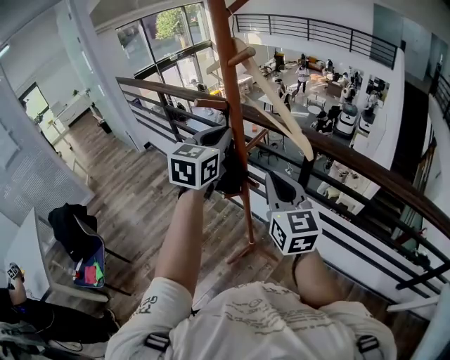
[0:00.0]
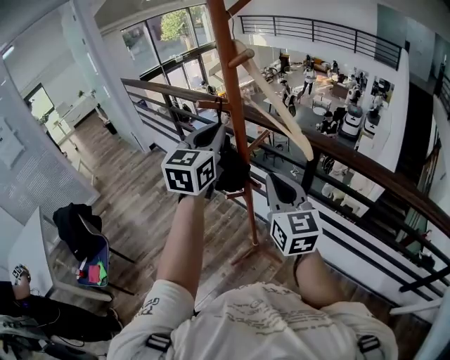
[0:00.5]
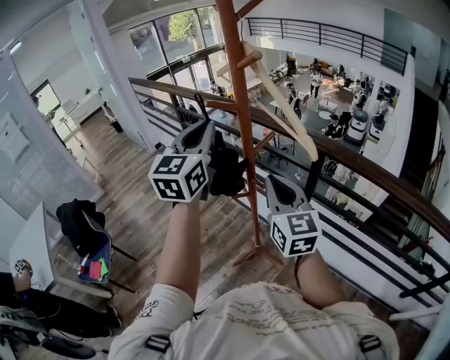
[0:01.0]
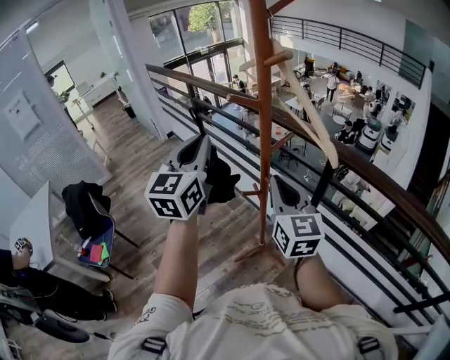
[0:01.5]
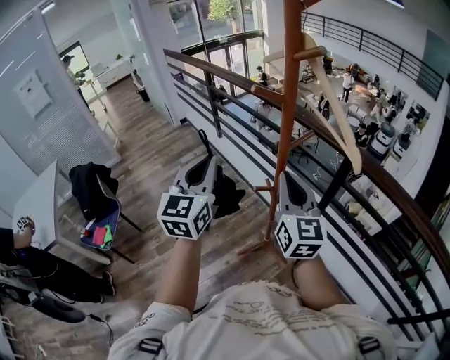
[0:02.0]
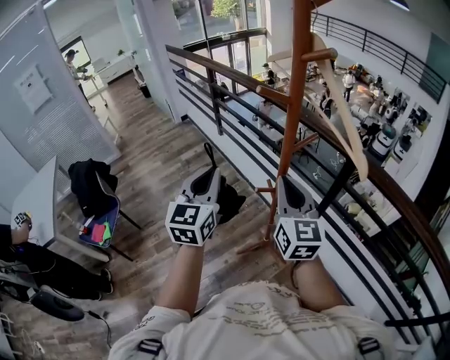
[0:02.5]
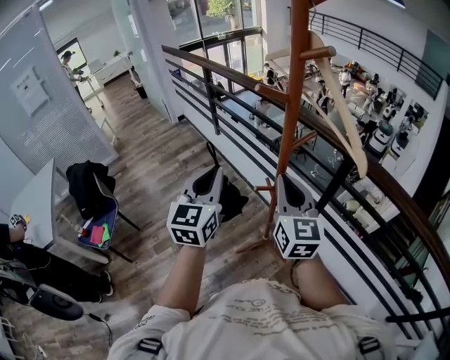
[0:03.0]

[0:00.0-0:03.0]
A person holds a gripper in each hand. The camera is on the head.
0:00.0 to 0:01.5: The left gripper moves to the left and backward, about 15 cm, and swivels about 20 degrees.
0:01.5 to 0:03.0: The left gripper is displaced downward by approximately 10 cm.

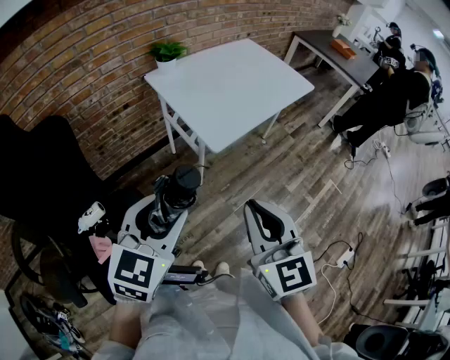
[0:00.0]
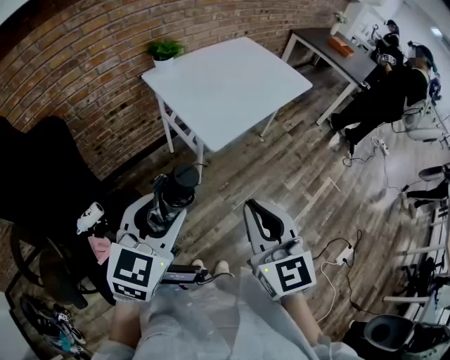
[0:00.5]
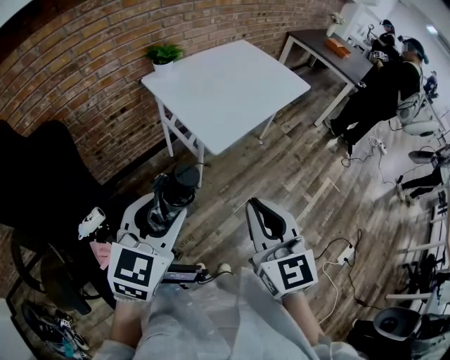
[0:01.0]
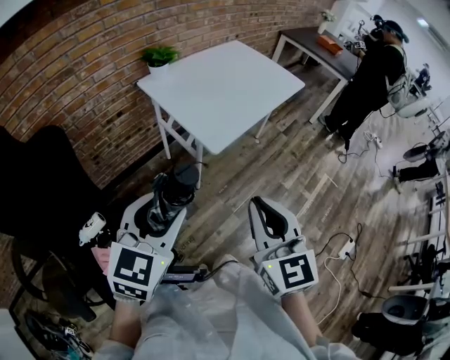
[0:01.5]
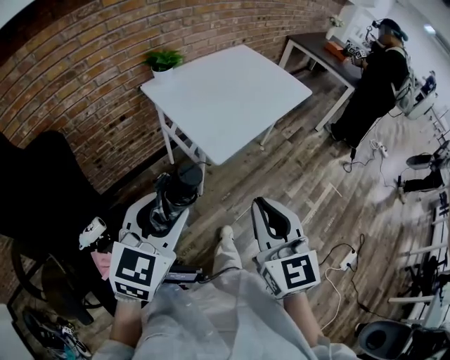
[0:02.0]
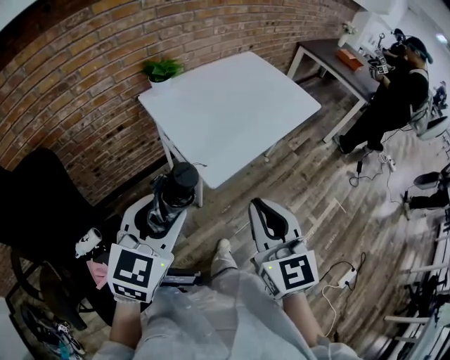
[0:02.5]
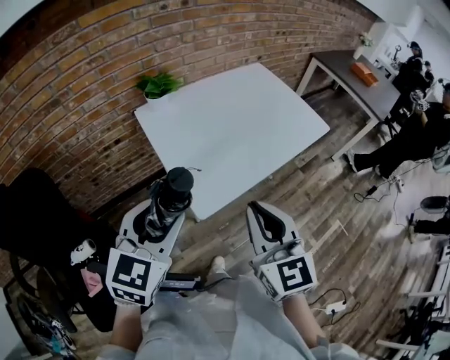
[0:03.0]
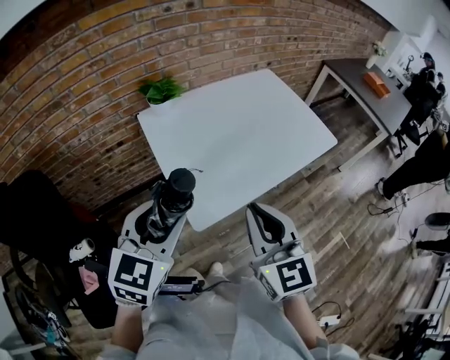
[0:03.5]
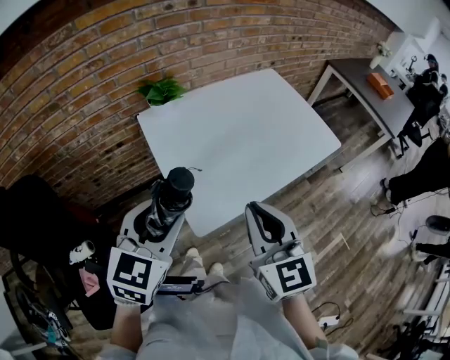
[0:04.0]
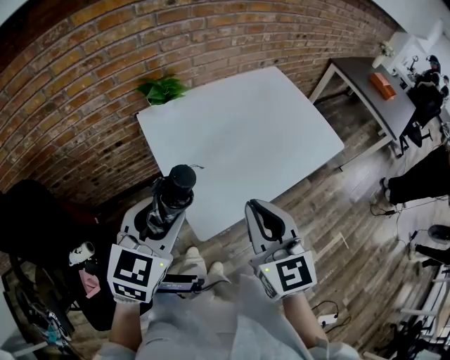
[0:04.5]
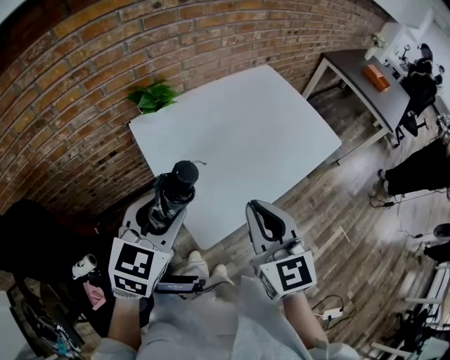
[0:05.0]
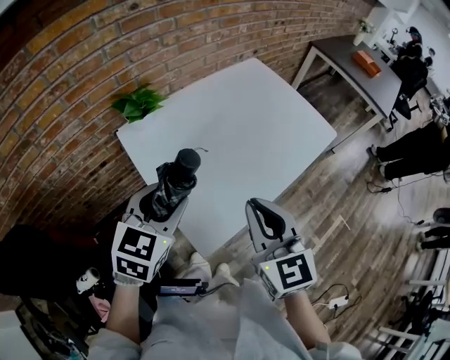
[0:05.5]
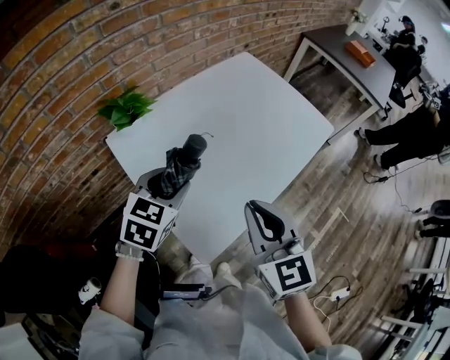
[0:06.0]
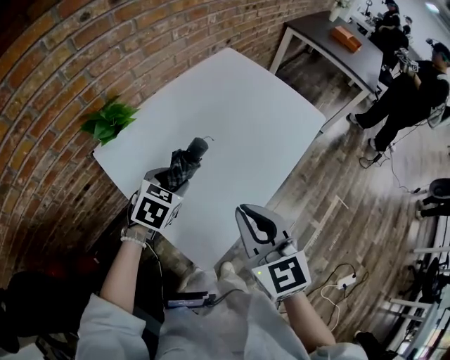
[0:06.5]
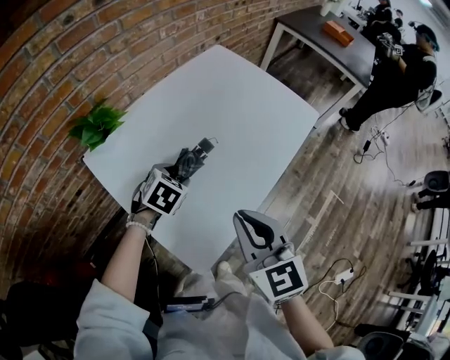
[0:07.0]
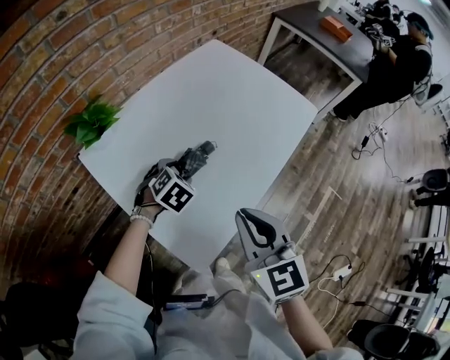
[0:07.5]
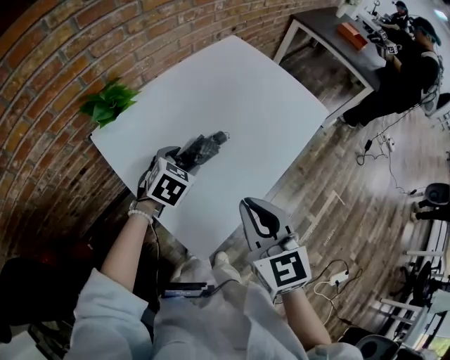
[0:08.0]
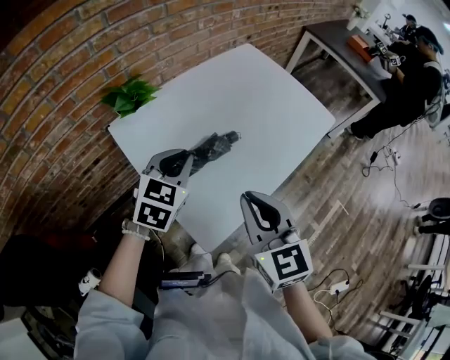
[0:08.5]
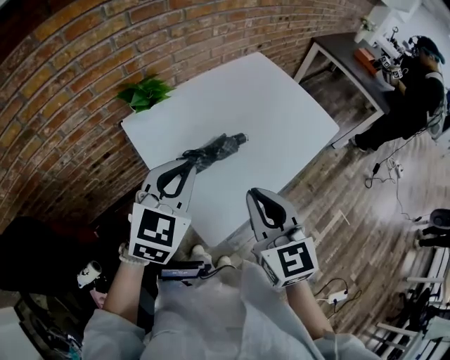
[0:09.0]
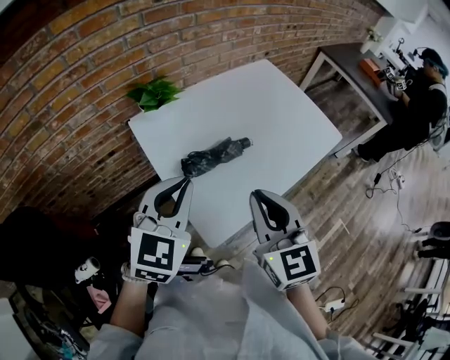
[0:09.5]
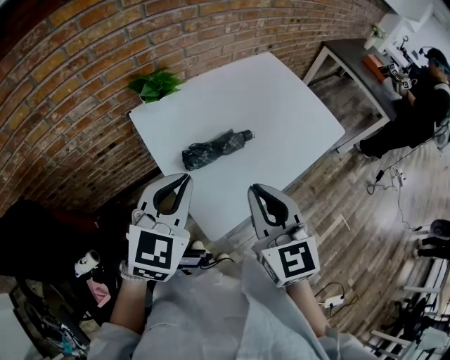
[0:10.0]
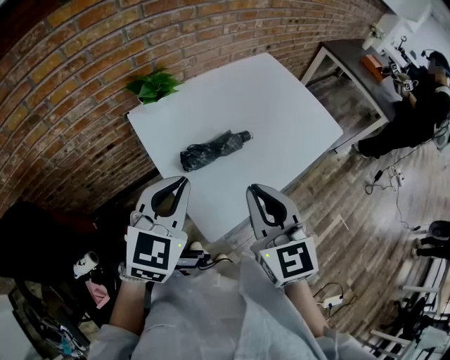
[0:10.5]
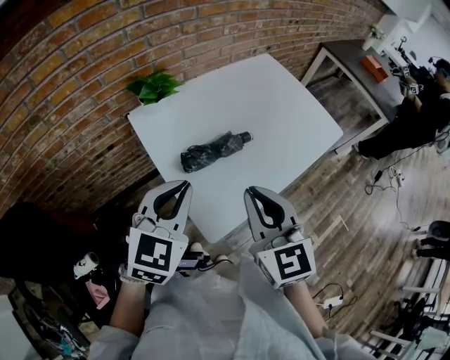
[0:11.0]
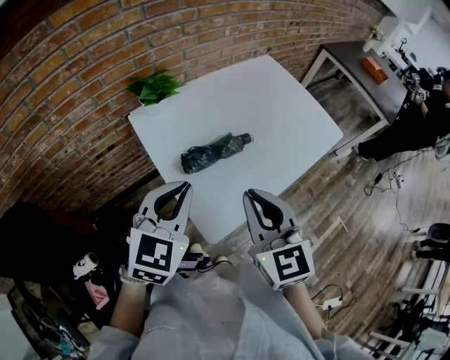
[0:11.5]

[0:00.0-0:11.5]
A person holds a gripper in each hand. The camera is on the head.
0:00.0 to 0:02.0: The left gripper shifts by approximately 5 cm.
0:02.0 to 0:04.0: The left gripper goes roughly 30 cm forward and to the right. The right gripper goes approximately 30 cm forward.
0:04.0 to 0:06.0: The left gripper moves forward and downward, approximately 25 cm, and changes its angle by some 20 degrees; the right gripper travels forward by about 10 cm.
0:06.0 to 0:07.5: The left gripper heads downward and forward, covering about 20 cm, and turns by some 30 degrees.
0:07.5 to 0:09.5: The left gripper moves upward and backward, approximately 30 cm, tilts its fingers approximately 40 degrees upward, and closes. Meanwhile the right gripper shifts roughly 10 cm upward and backward.
0:09.5 to 0:11.5: There are only small adjustments of the grippers.

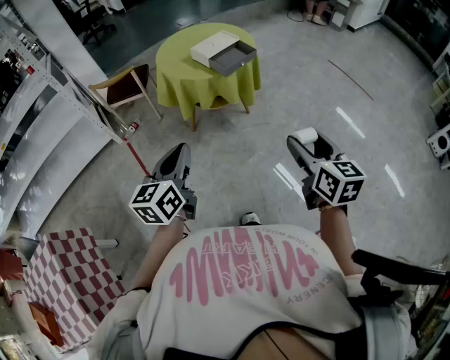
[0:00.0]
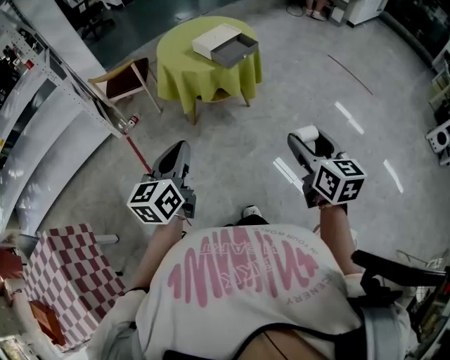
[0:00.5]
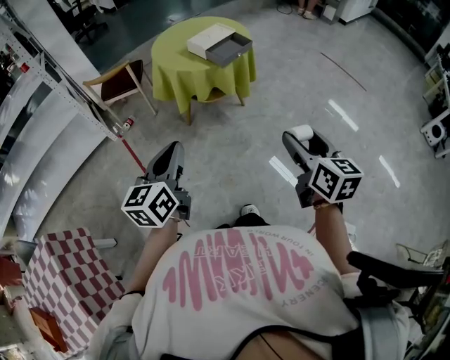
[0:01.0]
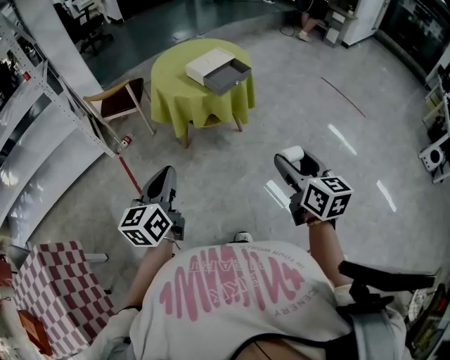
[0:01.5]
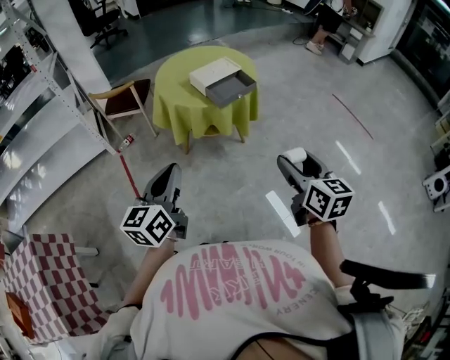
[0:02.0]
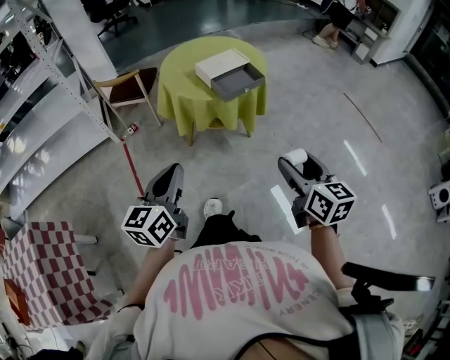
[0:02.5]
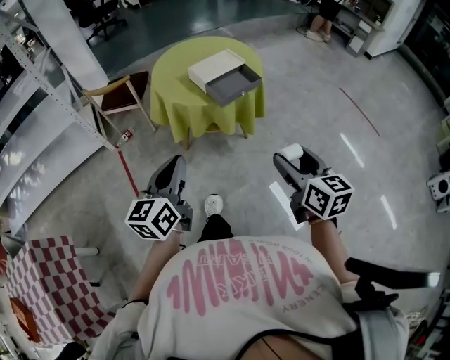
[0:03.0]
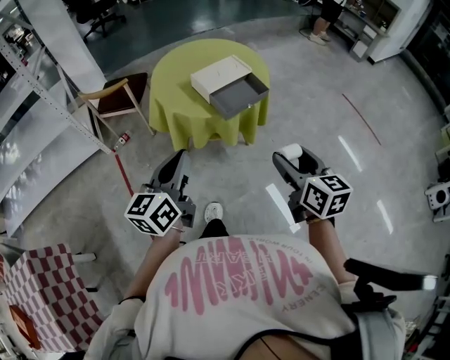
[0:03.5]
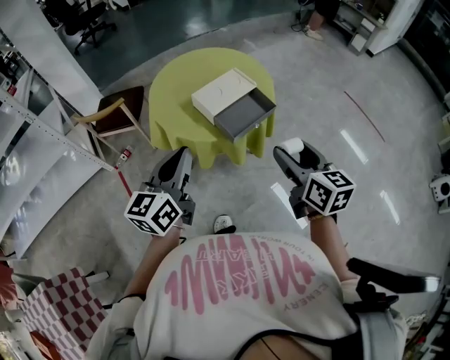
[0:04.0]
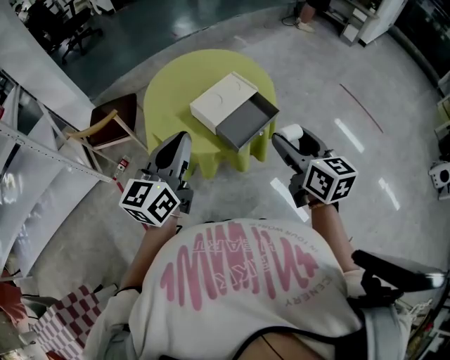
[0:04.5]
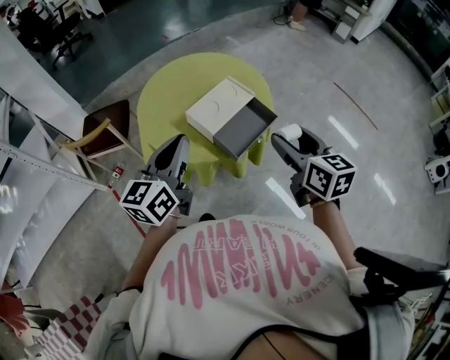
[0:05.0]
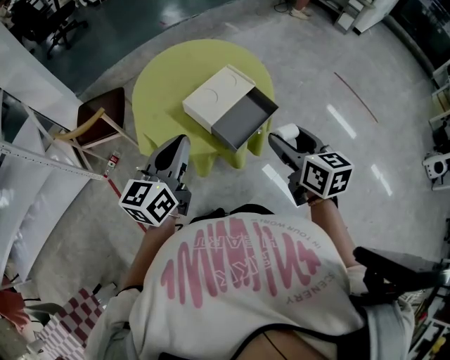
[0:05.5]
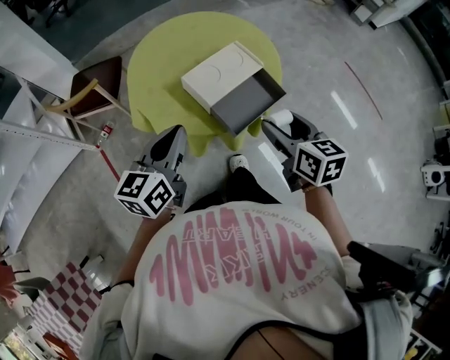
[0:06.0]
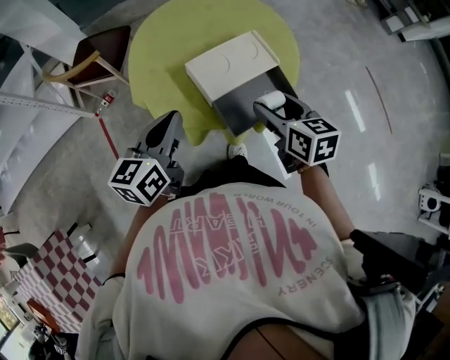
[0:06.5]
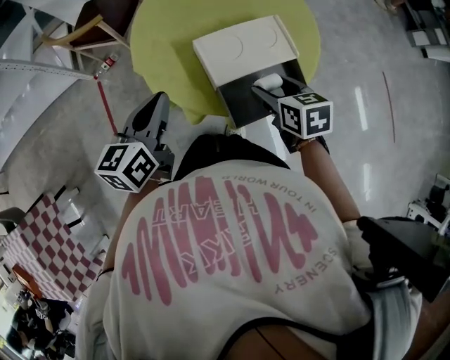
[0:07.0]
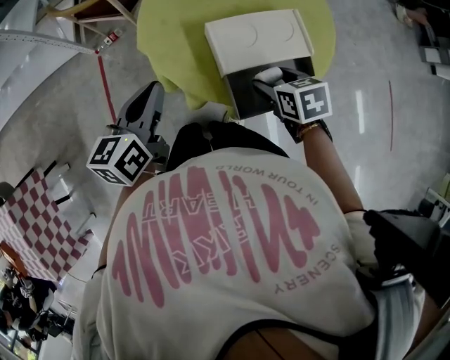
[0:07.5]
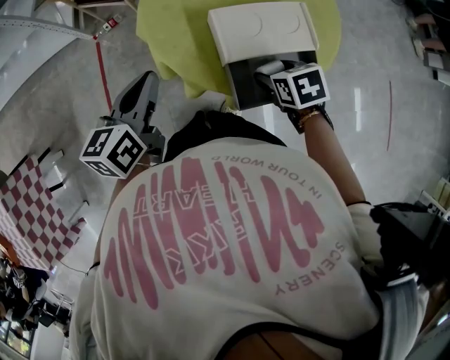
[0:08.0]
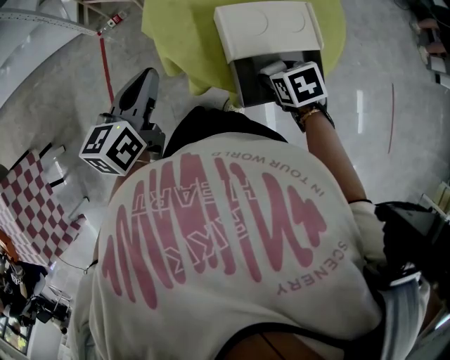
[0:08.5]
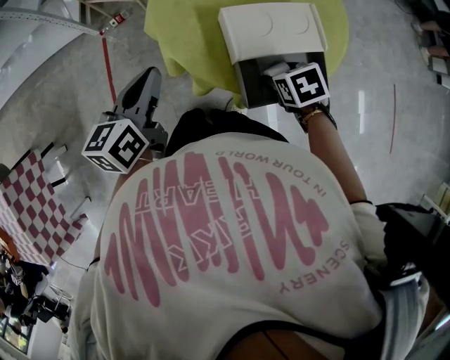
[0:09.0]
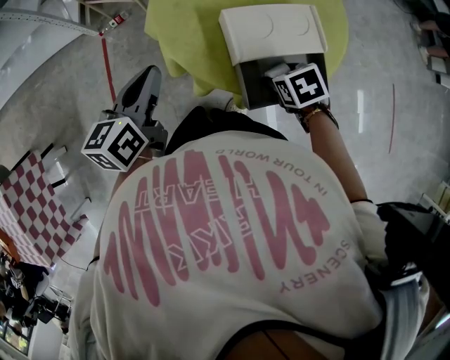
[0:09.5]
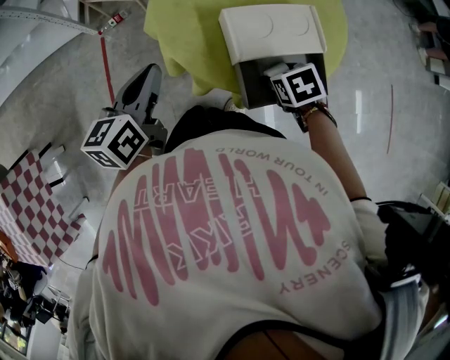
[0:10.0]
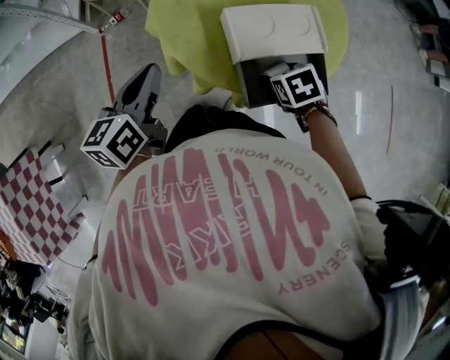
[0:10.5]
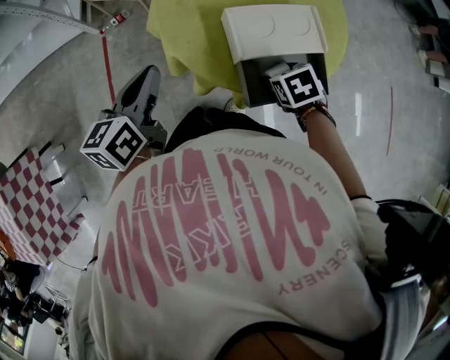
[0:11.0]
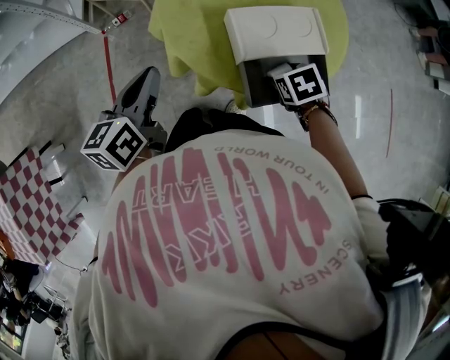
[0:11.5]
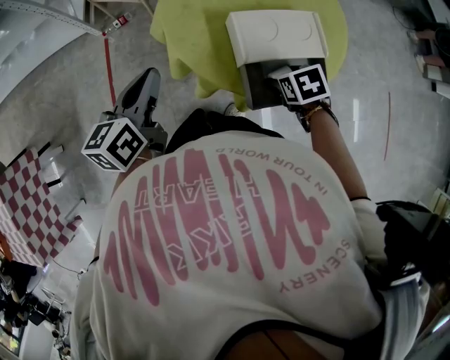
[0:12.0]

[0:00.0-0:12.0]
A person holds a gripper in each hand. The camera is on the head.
0:00.0 to 0:02.0: The left gripper travels forward by about 5 cm. The right gripper travels forward by some 10 cm.
0:02.0 to 0:04.0: The grippers both shift forward by approximately 30 cm.
0:04.0 to 0:06.0: Both grippers move forward and downward, about 15 cm.
0:06.0 to 0:08.0: The right gripper is displaced downward by approximately 20 cm, and tilts its fingers about 40 degrees downward. Meanwhile the left gripper goes roughly 10 cm downward, and turns by approximately 30 degrees.
0:08.0 to 0:12.0: There are only small adjustments of the grippers.
